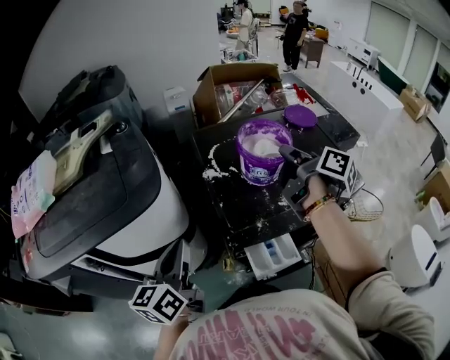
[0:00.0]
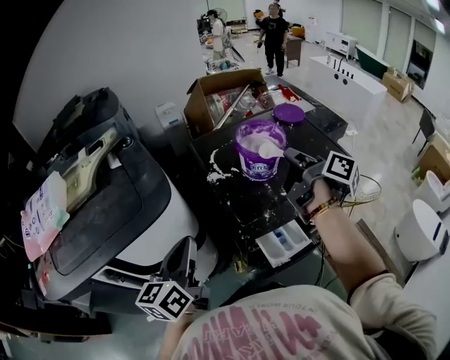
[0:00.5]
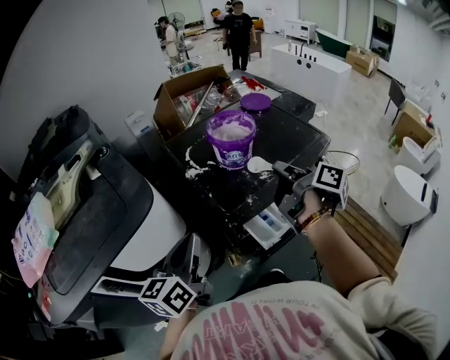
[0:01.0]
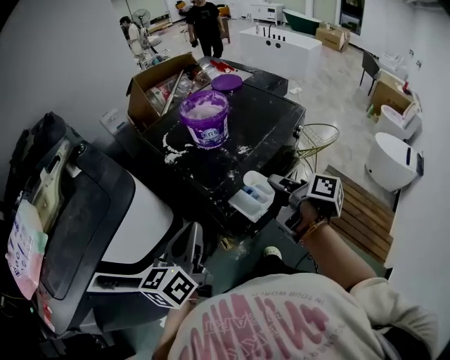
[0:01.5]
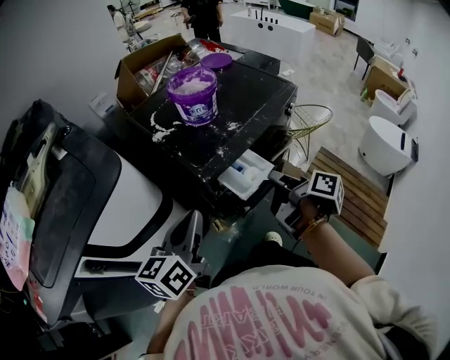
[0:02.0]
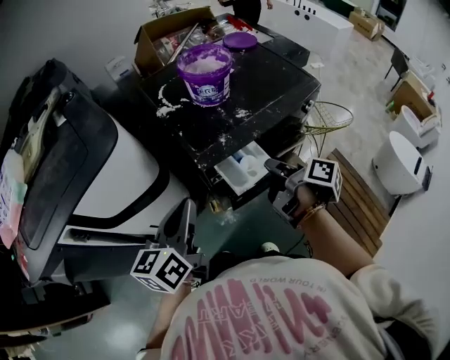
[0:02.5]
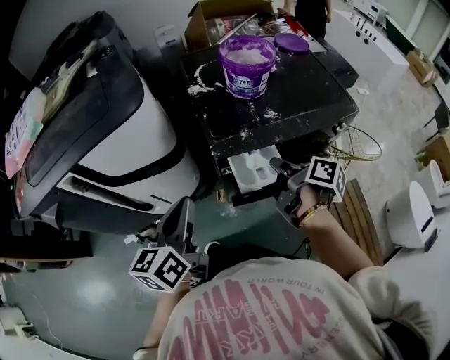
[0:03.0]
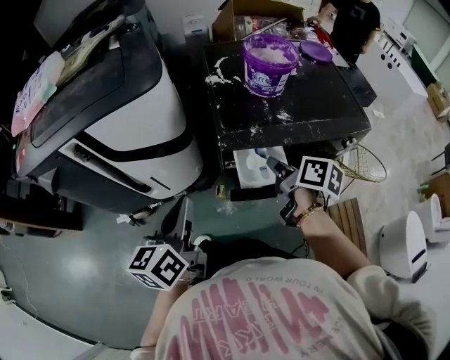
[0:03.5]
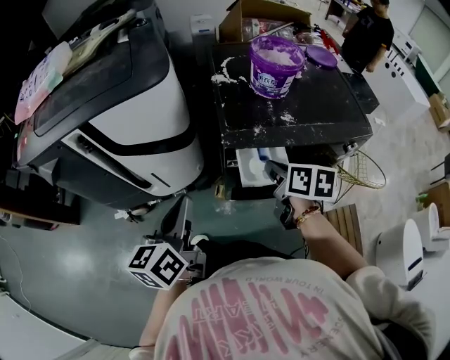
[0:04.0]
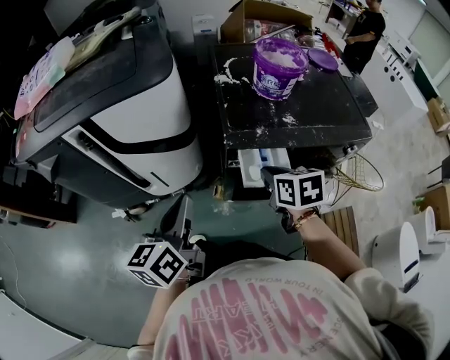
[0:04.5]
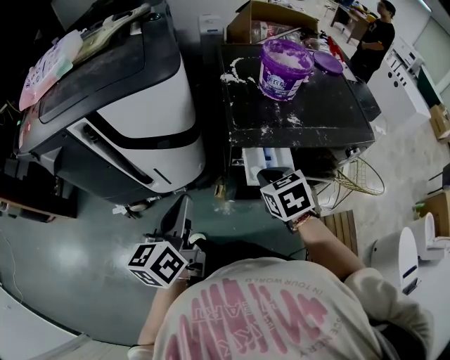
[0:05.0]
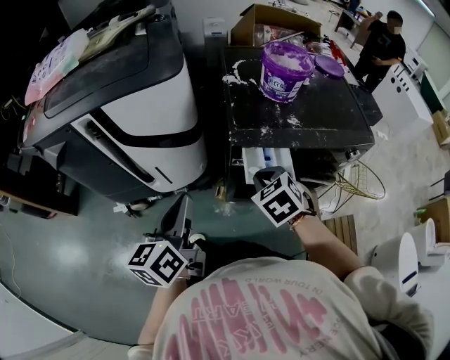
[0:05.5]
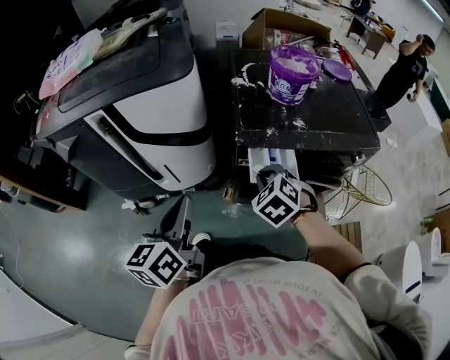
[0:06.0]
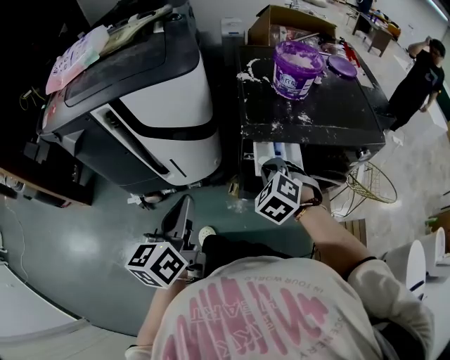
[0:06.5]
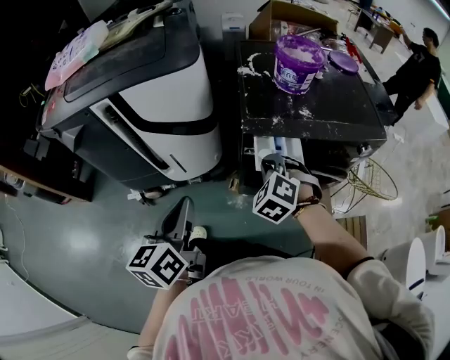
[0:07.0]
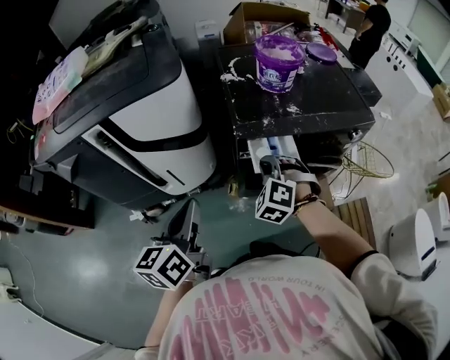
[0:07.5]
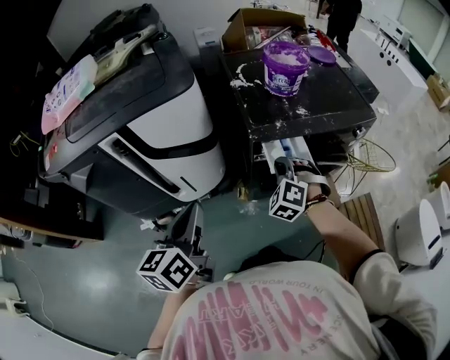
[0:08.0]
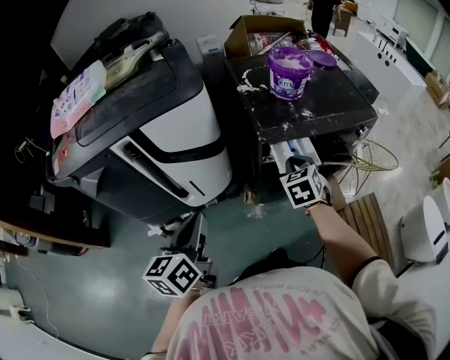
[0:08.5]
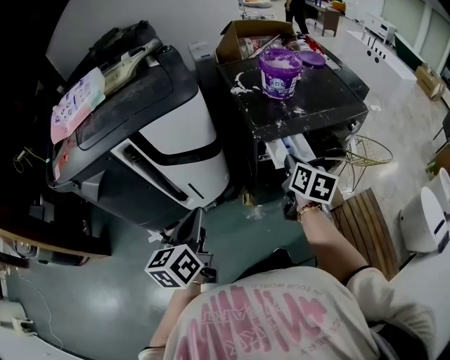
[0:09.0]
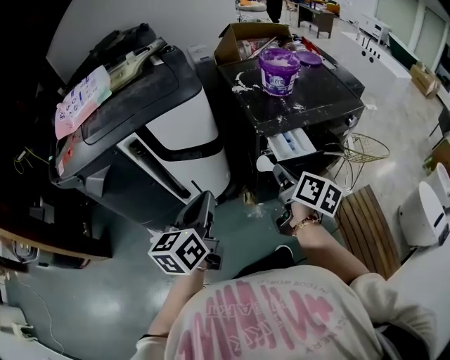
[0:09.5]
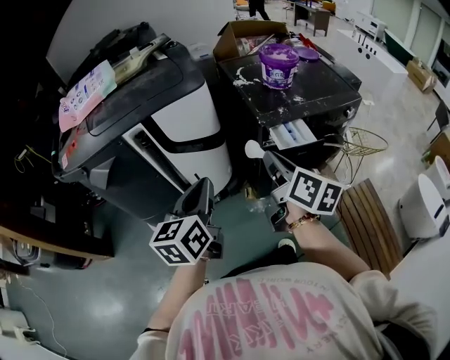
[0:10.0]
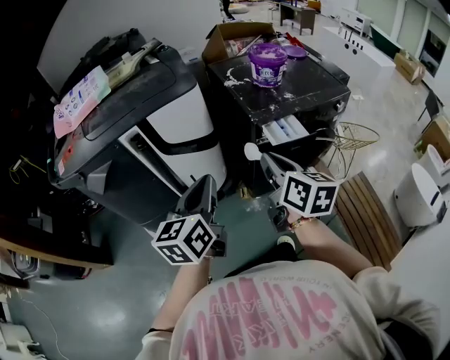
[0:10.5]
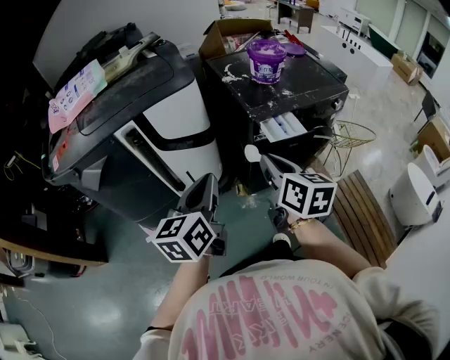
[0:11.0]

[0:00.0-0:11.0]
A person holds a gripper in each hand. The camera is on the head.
0:00.0 to 0:02.0: The right gripper moves roughly 35 cm, and turns by approximately 30 degrees, while the left gripper shifts by some 10 cm, and changes its angle by about 40 degrees.
0:02.0 to 0:03.5: The left gripper moves approximately 5 cm, and turns by about 40 degrees, while the right gripper moves some 10 cm, and rotates approximately 50 degrees.
0:03.5 to 0:05.5: The right gripper is displaced to the left by roughly 5 cm, and rolls counterclockwise, seen from behind, by roughly 80 degrees.
0:05.5 to 0:07.5: The right gripper turns by some 40 degrees.
0:07.5 to 0:09.0: The left gripper moves to the left, some 10 cm. The right gripper moves upward, approximately 5 cm, and rolls clockwise, seen from behind, by roughly 100 degrees.
0:09.0 to 0:11.0: The right gripper goes approximately 20 cm backward, to the left and upward.

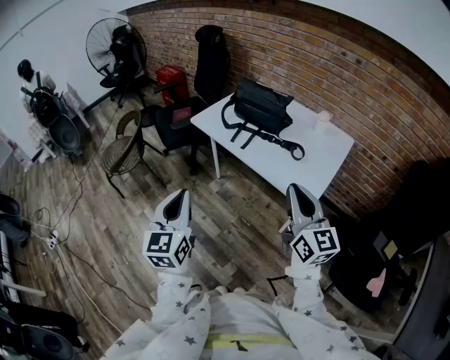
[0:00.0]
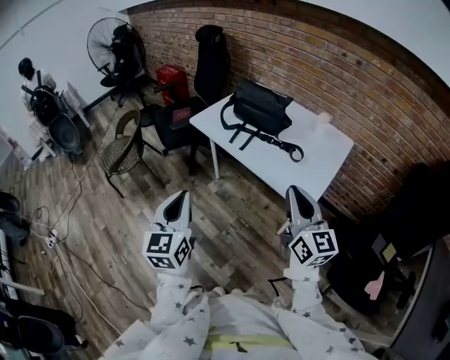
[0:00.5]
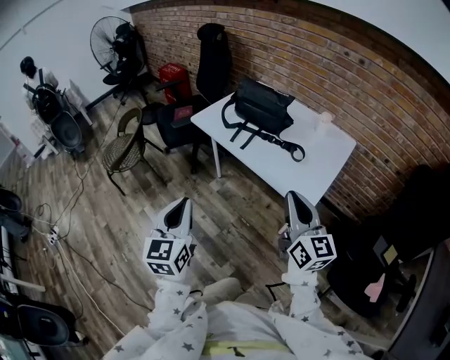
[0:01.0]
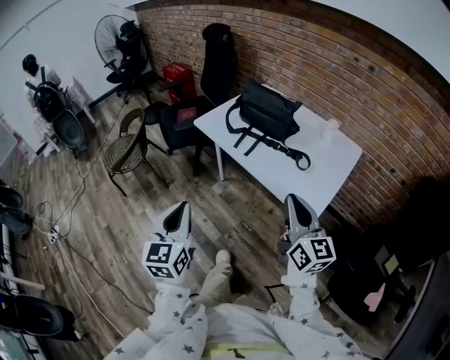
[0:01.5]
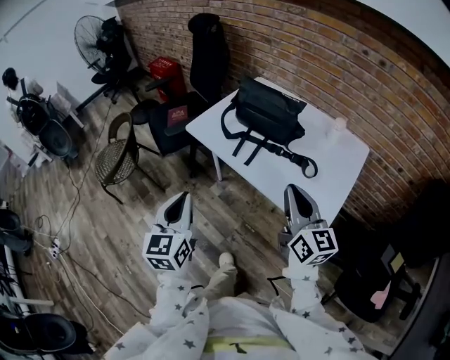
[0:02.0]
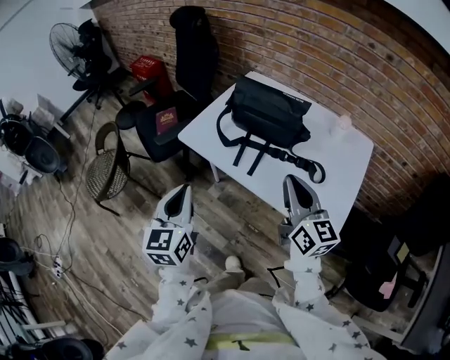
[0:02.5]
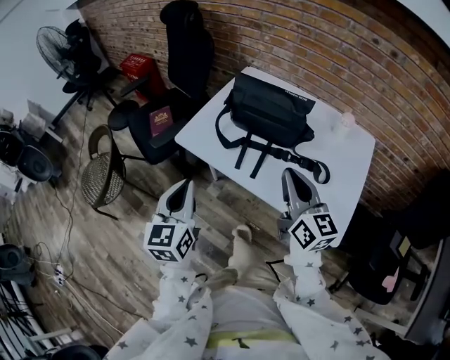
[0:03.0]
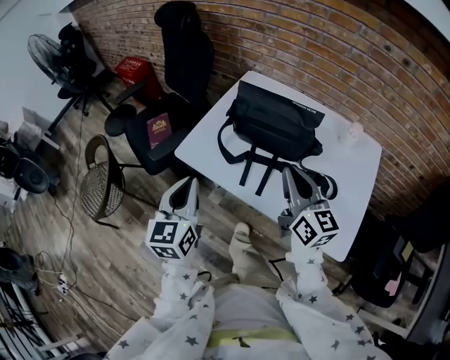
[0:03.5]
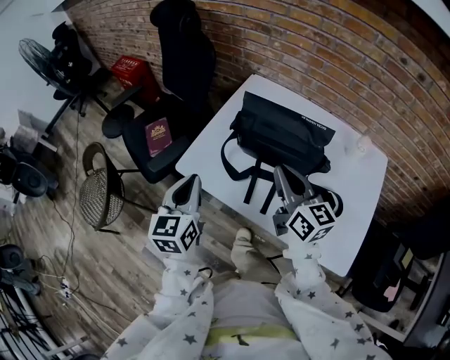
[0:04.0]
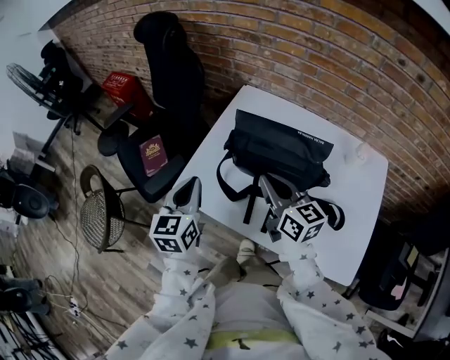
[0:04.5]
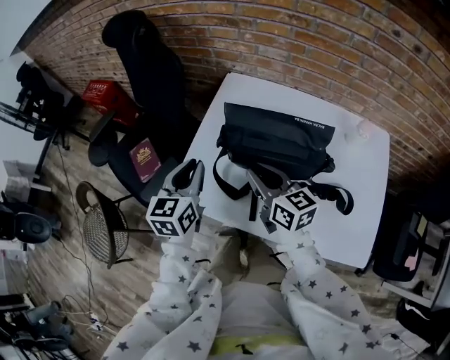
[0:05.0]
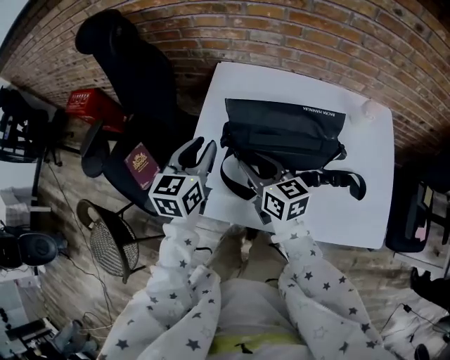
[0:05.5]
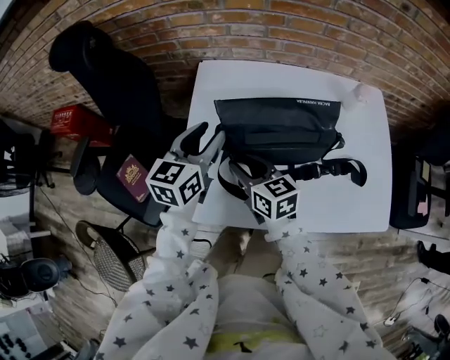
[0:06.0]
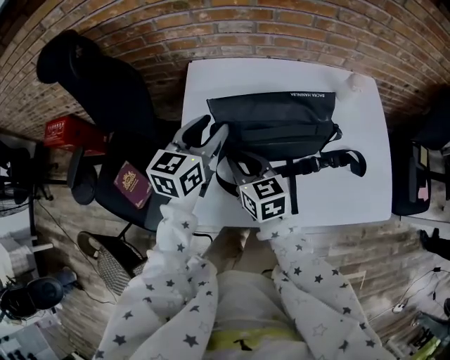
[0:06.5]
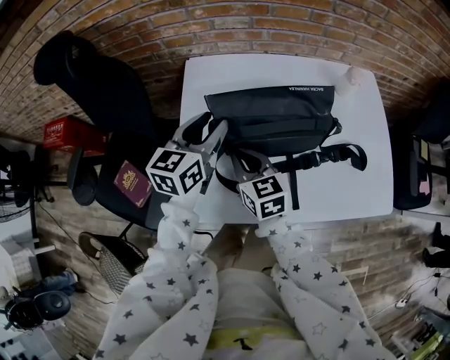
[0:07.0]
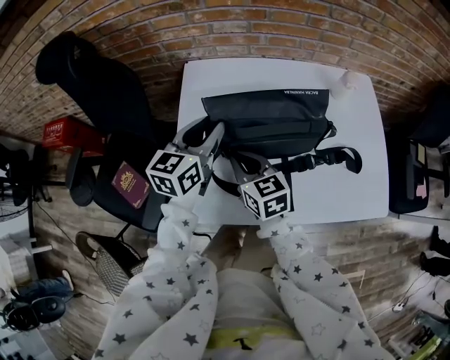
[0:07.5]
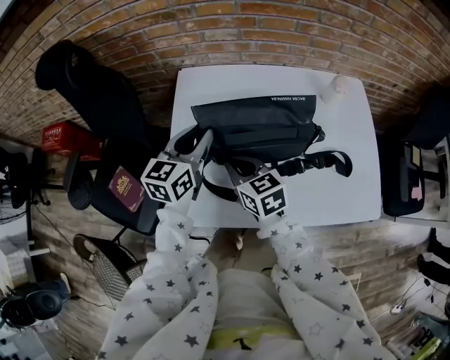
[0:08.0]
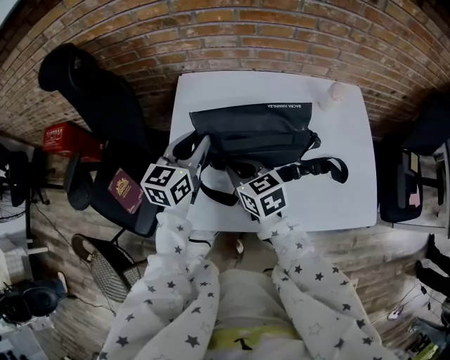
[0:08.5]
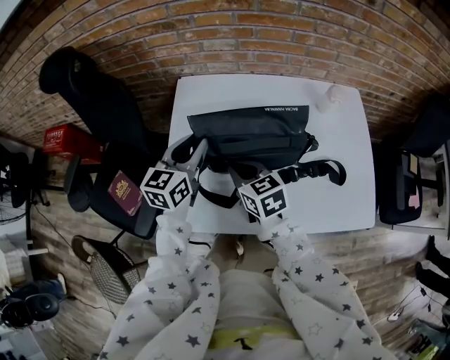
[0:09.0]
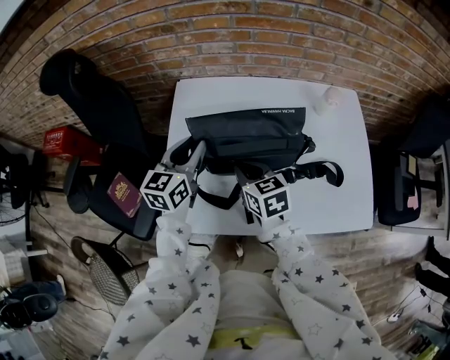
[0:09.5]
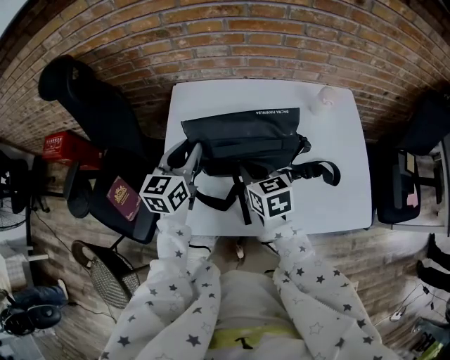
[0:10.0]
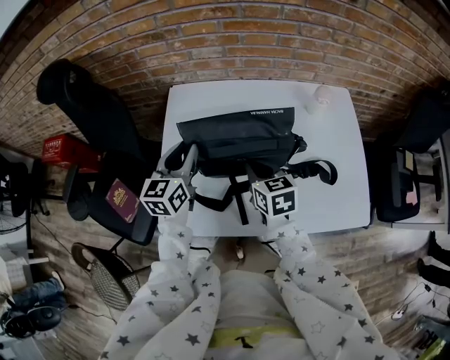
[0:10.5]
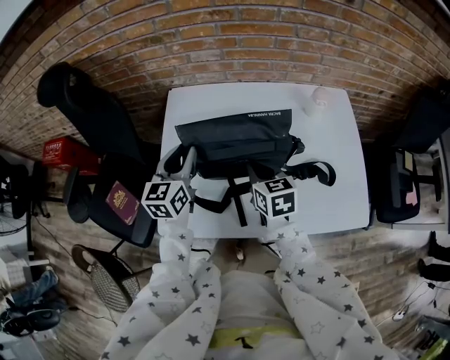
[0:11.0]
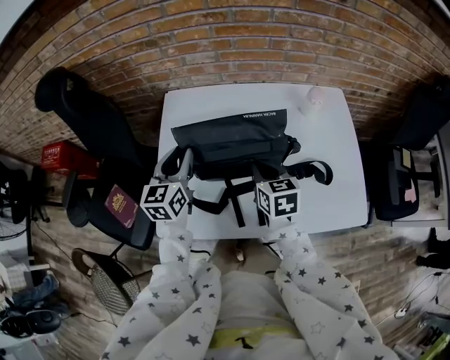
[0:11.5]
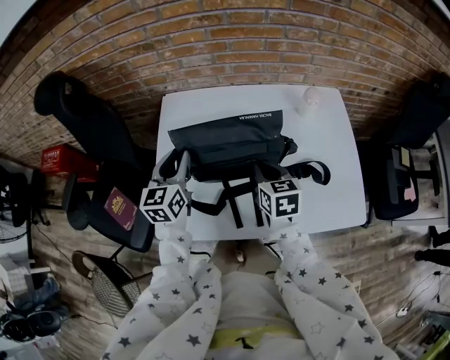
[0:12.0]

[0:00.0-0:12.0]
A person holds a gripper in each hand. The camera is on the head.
0:00.0 to 0:02.0: Both grippers move forward, approximately 15 cm.
0:02.0 to 0:04.0: The two grippers go roughly 30 cm forward.
0:04.0 to 0:06.0: The right gripper moves some 20 cm, rotates about 20 degrees, and opens; the left gripper moves about 25 cm, changes its angle by approximately 40 degrees, and opens up.
0:06.0 to 0:08.0: The right gripper closes its fingers.
0:08.0 to 0:10.0: The right gripper shifts approximately 10 cm to the right.
0:10.0 to 0:12.0: The right gripper is displaced to the right by some 10 cm.

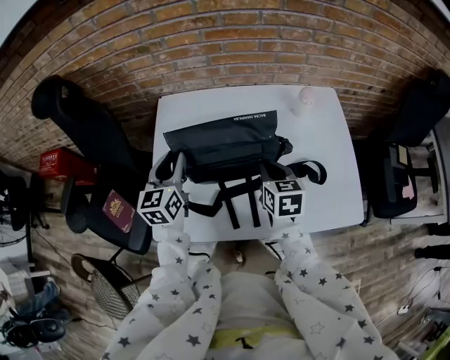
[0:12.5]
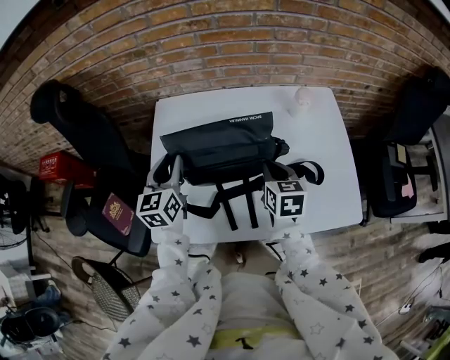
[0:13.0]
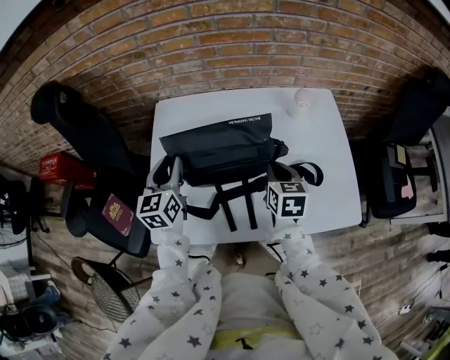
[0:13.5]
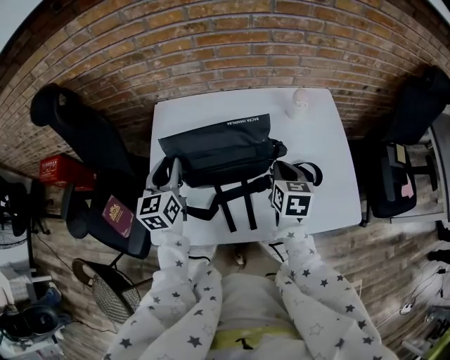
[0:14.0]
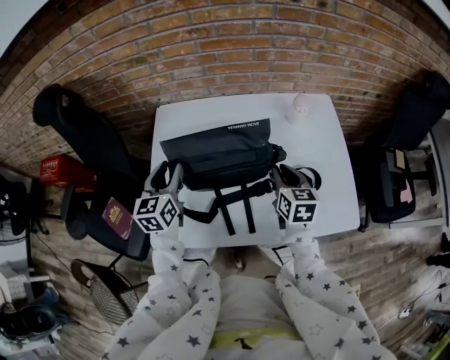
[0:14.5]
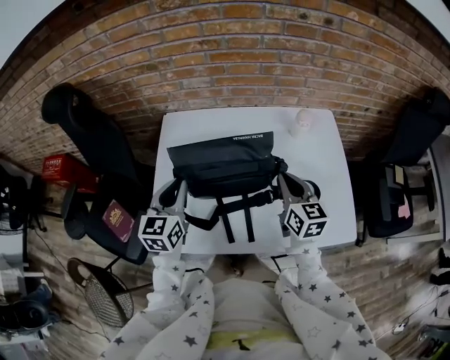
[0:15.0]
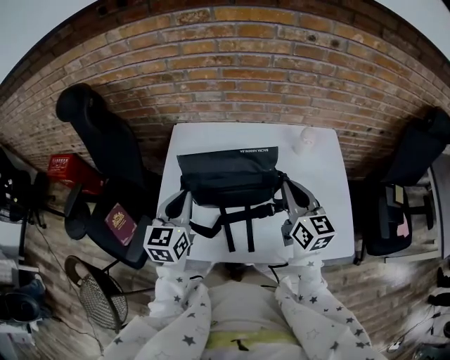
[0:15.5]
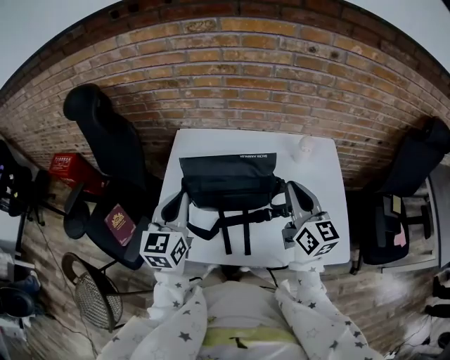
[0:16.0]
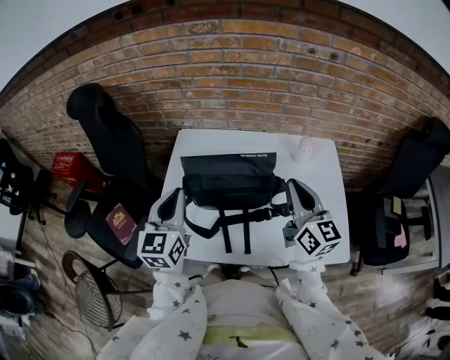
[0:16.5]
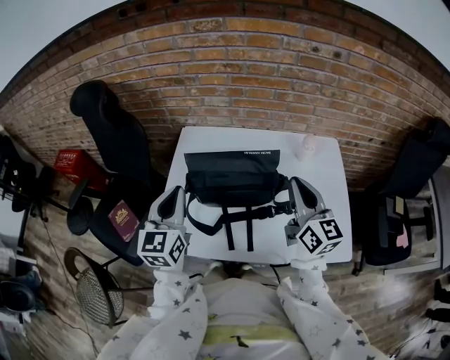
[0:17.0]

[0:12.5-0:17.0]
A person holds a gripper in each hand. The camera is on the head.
0:12.5 to 0:14.5: The right gripper travels to the right by approximately 5 cm.
0:14.5 to 0:17.0: The left gripper moves upward and backward, roughly 15 cm, and closes its fingers. The right gripper heads upward, covering about 20 cm, and points its fingers approximately 30 degrees further upward.
